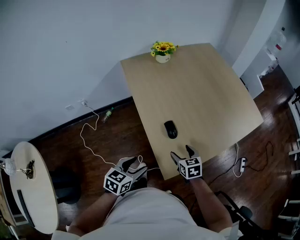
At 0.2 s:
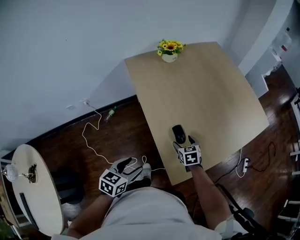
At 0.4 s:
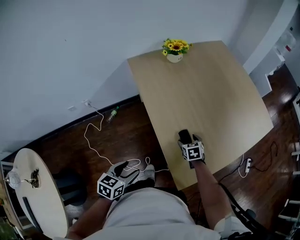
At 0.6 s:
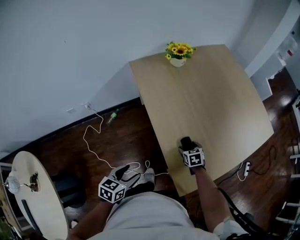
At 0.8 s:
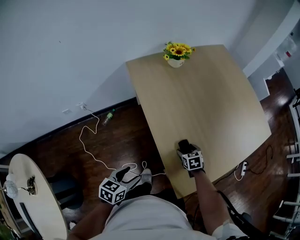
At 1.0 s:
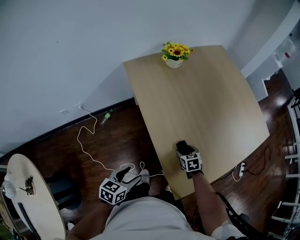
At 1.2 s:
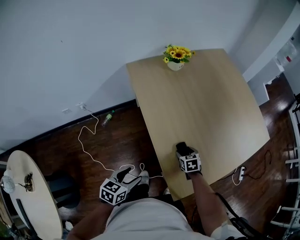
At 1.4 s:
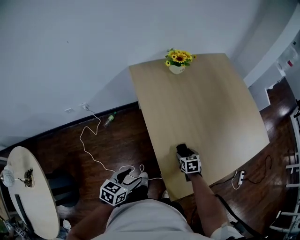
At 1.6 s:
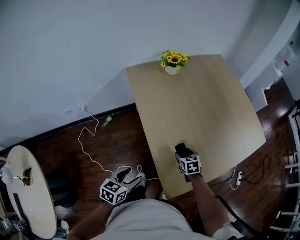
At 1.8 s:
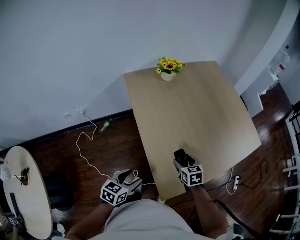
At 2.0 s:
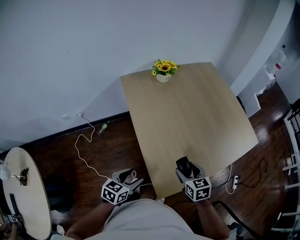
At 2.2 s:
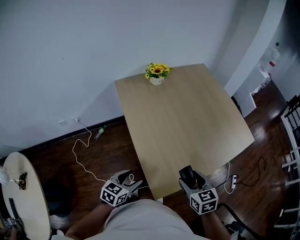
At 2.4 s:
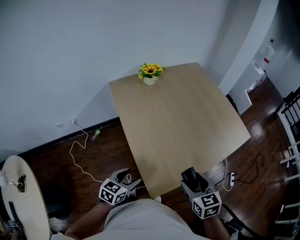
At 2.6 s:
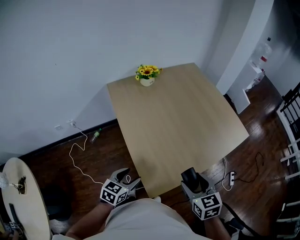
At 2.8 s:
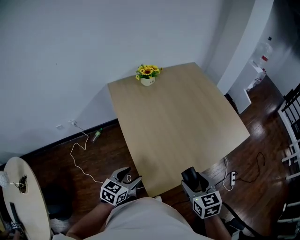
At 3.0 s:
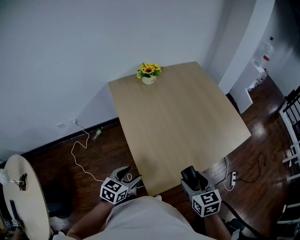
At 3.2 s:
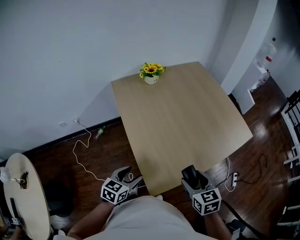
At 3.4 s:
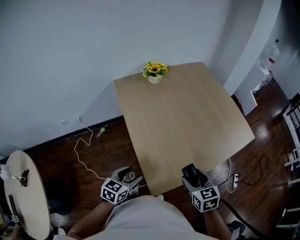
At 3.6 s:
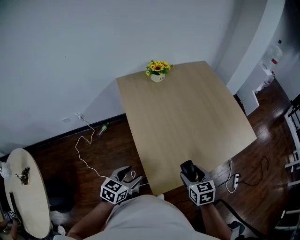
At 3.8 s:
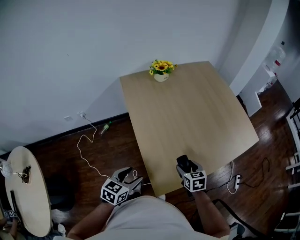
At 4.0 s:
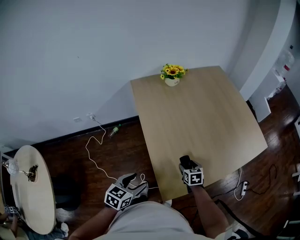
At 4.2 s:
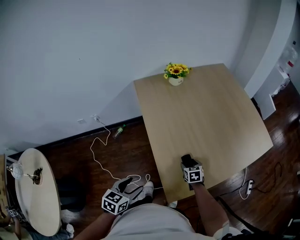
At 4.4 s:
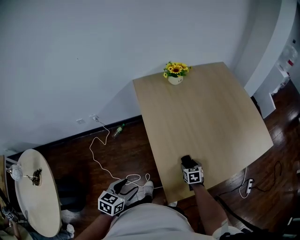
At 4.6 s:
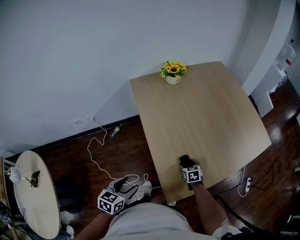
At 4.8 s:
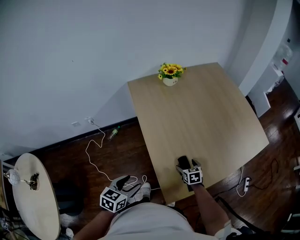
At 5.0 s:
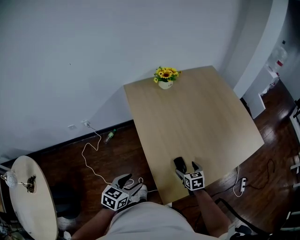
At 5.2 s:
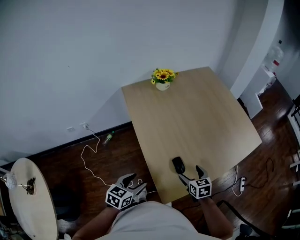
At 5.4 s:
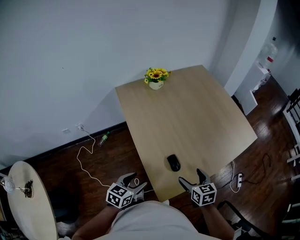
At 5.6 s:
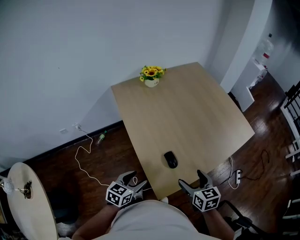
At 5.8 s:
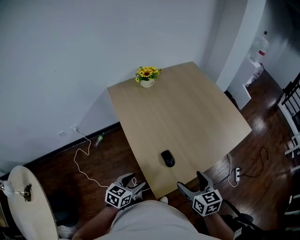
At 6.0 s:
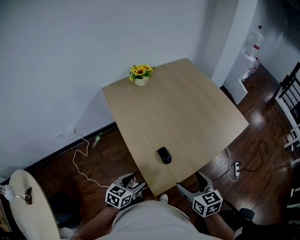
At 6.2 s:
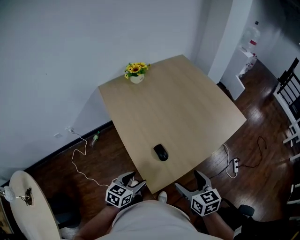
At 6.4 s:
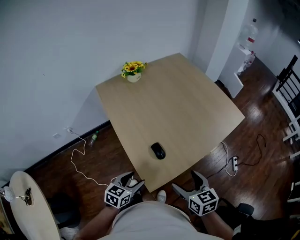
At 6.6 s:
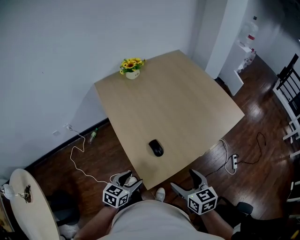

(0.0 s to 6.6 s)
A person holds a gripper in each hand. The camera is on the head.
0.0 s - 1.6 s: The left gripper shifts approximately 10 cm to the left and forward. The right gripper goes roughly 15 cm forward and downward.
1.6 s - 3.2 s: The right gripper moves upward, backward and to the right, roughly 30 cm; the left gripper moves to the right and upward, some 10 cm.
3.2 s - 5.0 s: The left gripper is displaced to the left by roughly 10 cm, while the right gripper is displaced downward and forward by about 25 cm, and opens its fingers.
5.0 s - 6.6 s: The right gripper moves upward, backward and to the right, roughly 25 cm; the left gripper travels to the right by roughly 15 cm.

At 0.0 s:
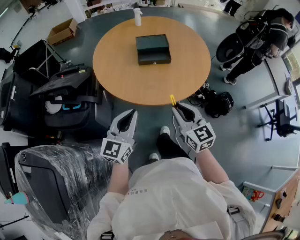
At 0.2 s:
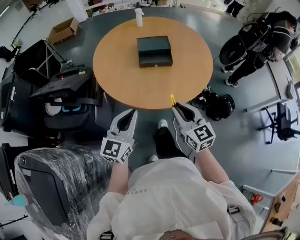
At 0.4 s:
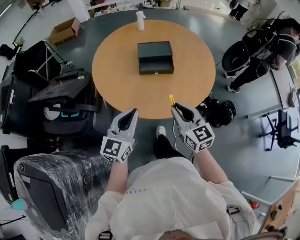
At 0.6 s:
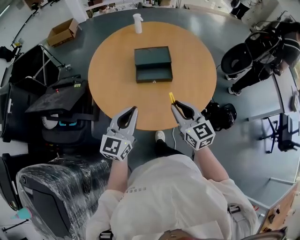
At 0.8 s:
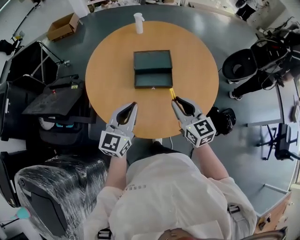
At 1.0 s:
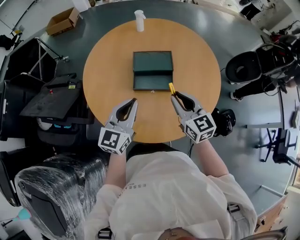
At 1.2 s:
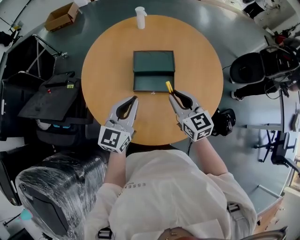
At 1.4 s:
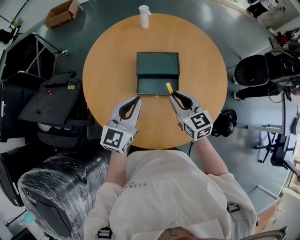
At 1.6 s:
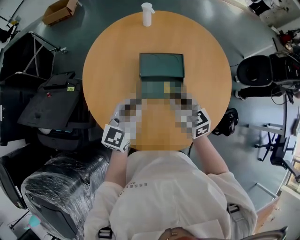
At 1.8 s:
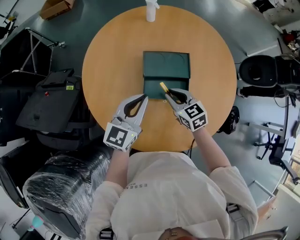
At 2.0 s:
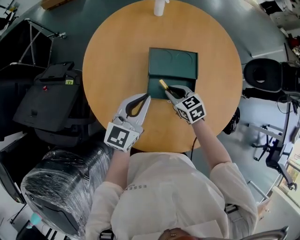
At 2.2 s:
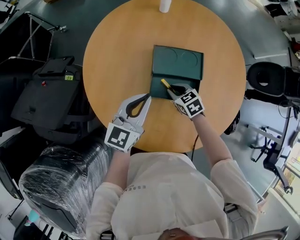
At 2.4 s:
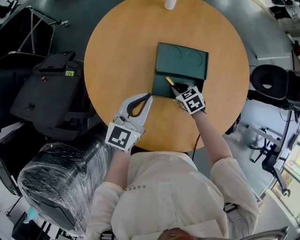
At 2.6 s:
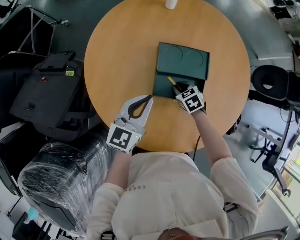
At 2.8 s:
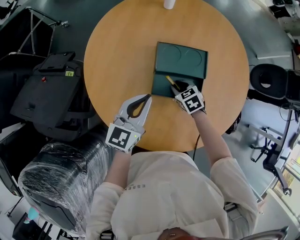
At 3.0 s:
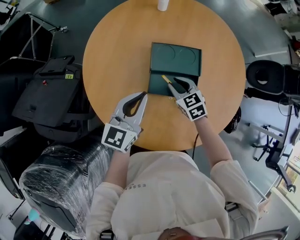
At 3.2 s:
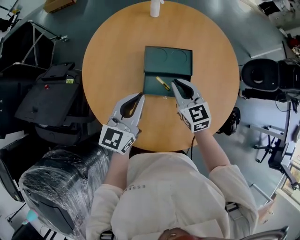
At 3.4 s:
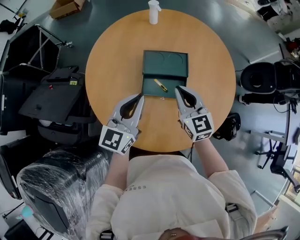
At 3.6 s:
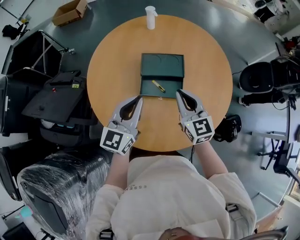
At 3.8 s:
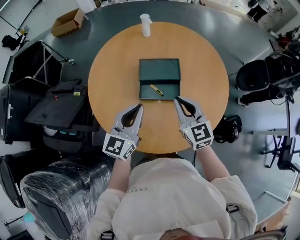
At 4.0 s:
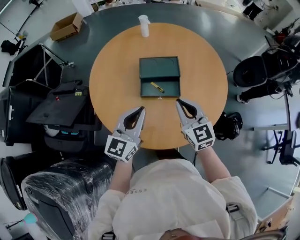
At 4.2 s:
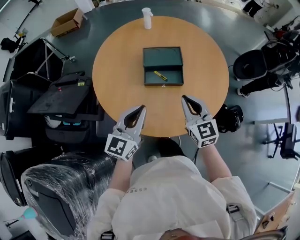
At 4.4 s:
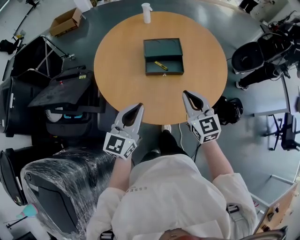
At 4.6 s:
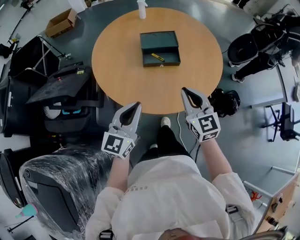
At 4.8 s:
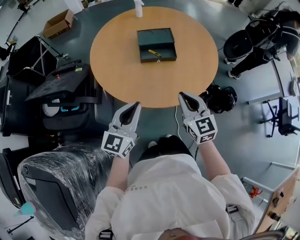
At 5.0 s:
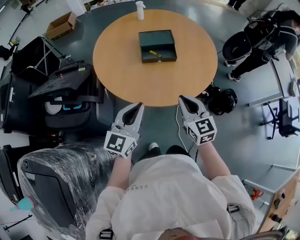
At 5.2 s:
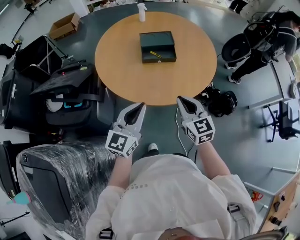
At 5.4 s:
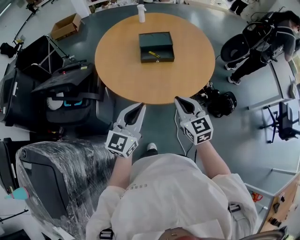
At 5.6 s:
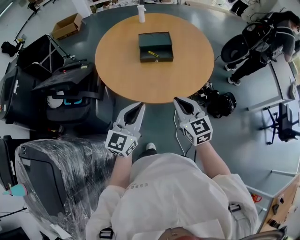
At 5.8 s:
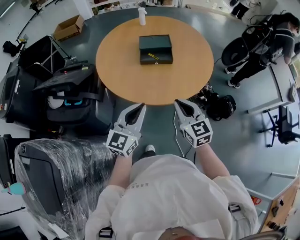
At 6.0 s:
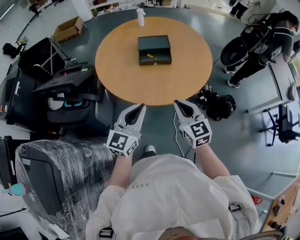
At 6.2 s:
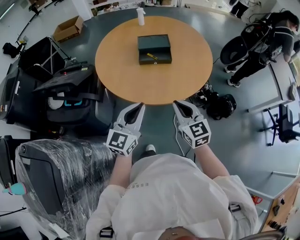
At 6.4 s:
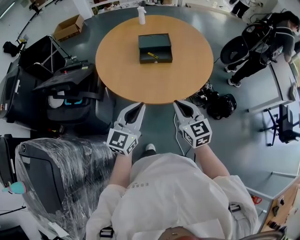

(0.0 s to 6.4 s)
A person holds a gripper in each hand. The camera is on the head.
0.0 s - 1.6 s: The grippers both shift forward by some 40 cm.
1.6 s - 3.2 s: The right gripper goes some 5 cm forward, and travels downward and back again, roughly 20 cm each way.
3.2 s - 4.8 s: Both grippers move backward, some 30 cm.
4.8 s - 6.4 s: The left gripper goes roughly 10 cm backward and to the right, while the right gripper moves backward, some 10 cm.

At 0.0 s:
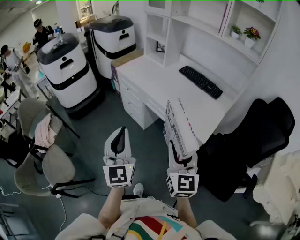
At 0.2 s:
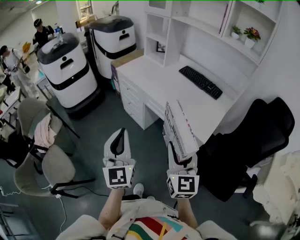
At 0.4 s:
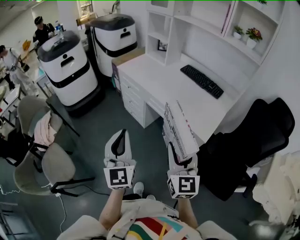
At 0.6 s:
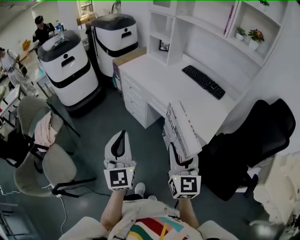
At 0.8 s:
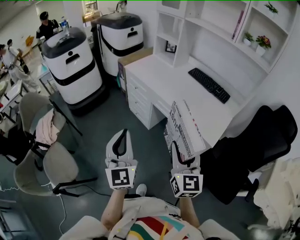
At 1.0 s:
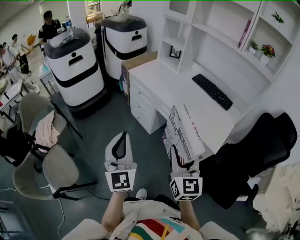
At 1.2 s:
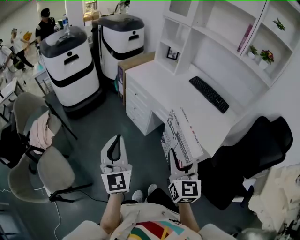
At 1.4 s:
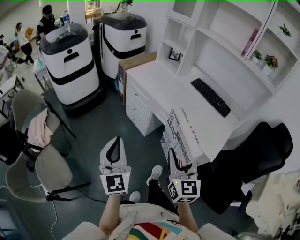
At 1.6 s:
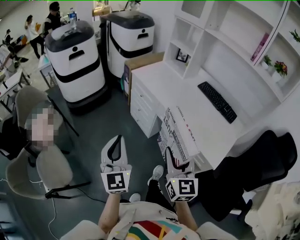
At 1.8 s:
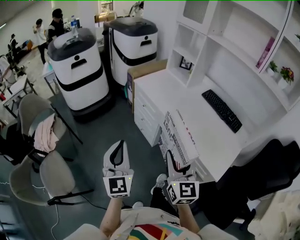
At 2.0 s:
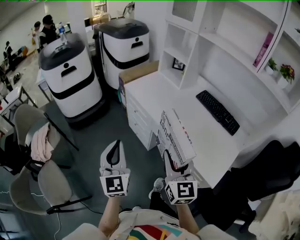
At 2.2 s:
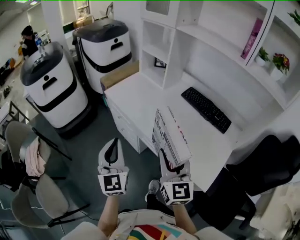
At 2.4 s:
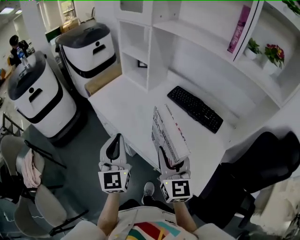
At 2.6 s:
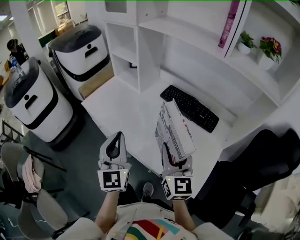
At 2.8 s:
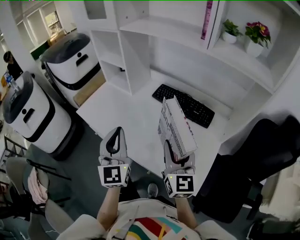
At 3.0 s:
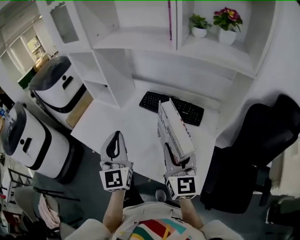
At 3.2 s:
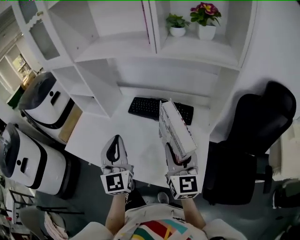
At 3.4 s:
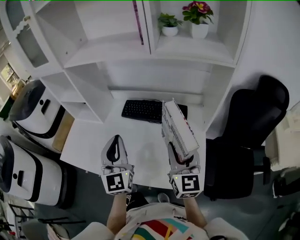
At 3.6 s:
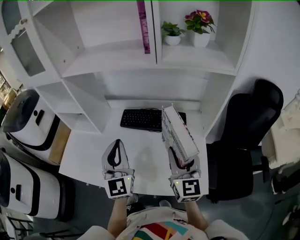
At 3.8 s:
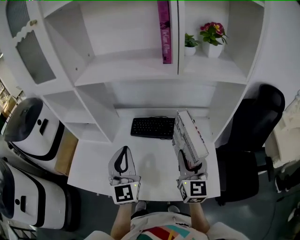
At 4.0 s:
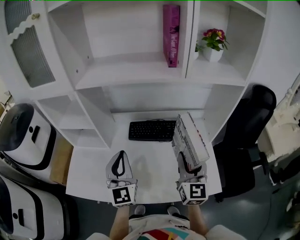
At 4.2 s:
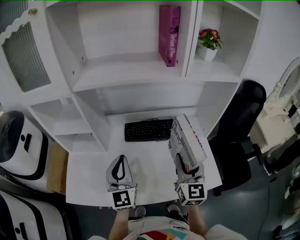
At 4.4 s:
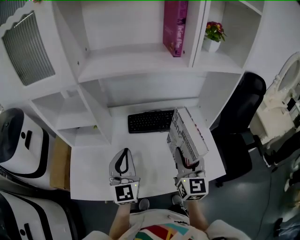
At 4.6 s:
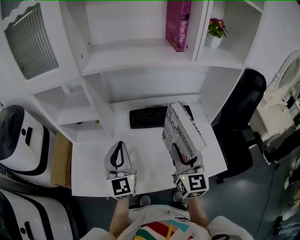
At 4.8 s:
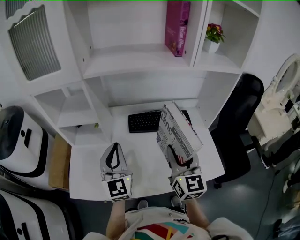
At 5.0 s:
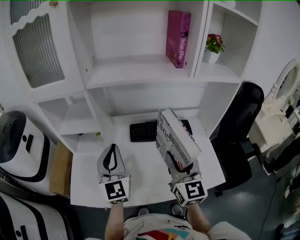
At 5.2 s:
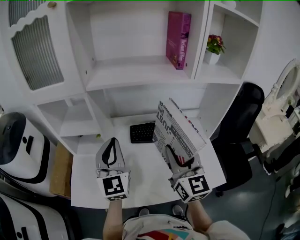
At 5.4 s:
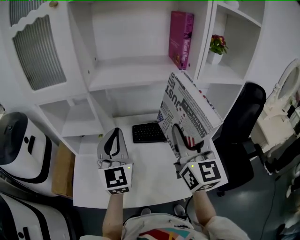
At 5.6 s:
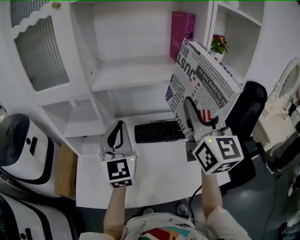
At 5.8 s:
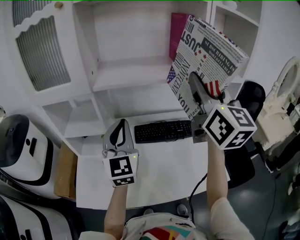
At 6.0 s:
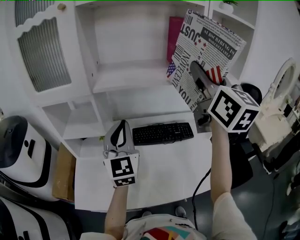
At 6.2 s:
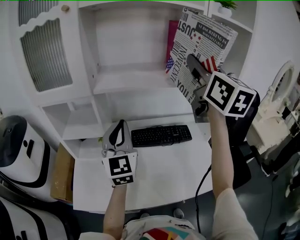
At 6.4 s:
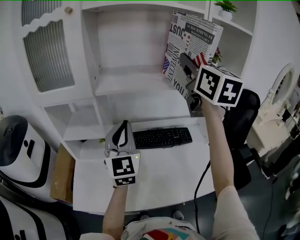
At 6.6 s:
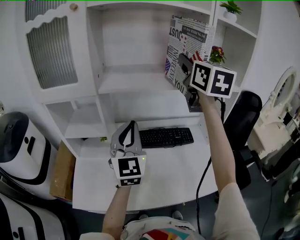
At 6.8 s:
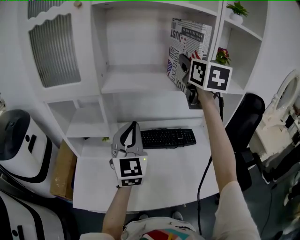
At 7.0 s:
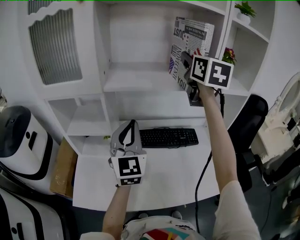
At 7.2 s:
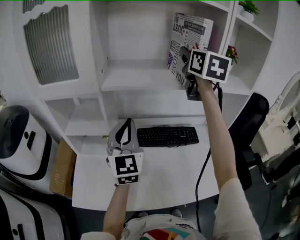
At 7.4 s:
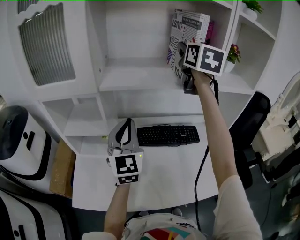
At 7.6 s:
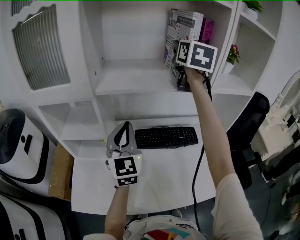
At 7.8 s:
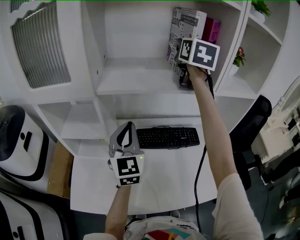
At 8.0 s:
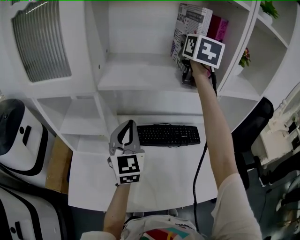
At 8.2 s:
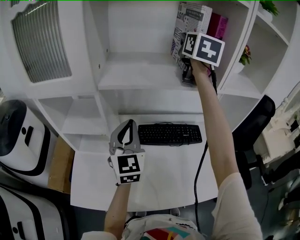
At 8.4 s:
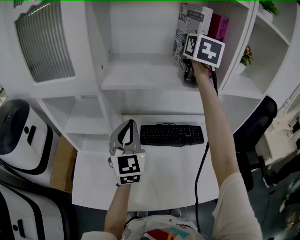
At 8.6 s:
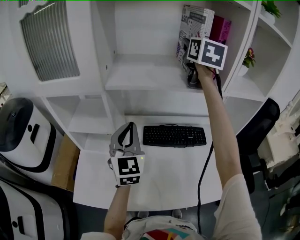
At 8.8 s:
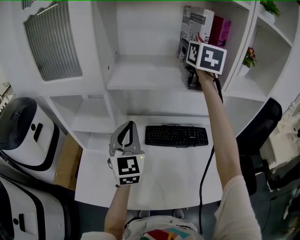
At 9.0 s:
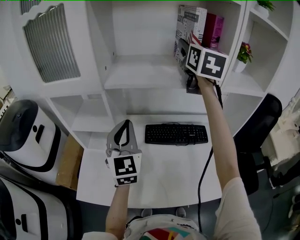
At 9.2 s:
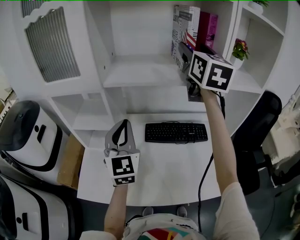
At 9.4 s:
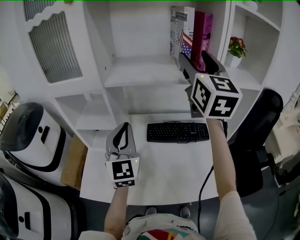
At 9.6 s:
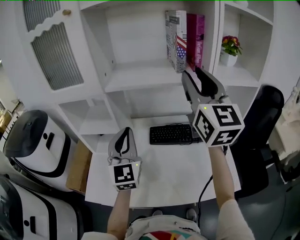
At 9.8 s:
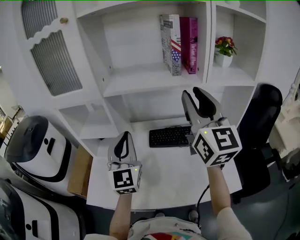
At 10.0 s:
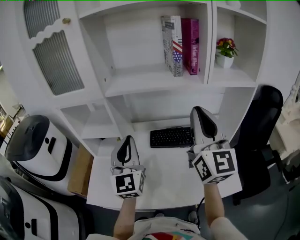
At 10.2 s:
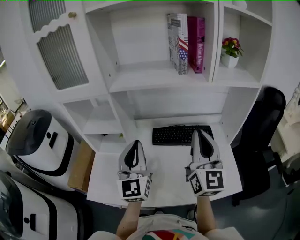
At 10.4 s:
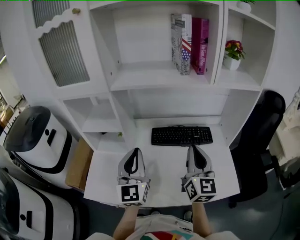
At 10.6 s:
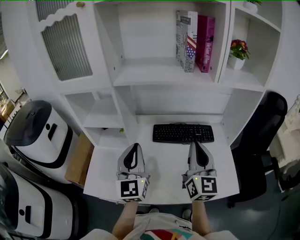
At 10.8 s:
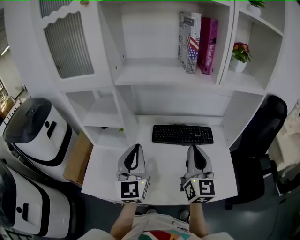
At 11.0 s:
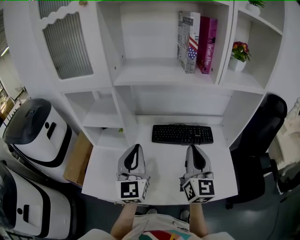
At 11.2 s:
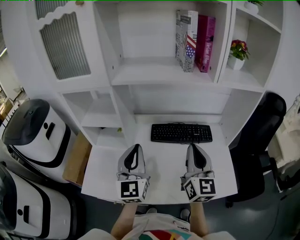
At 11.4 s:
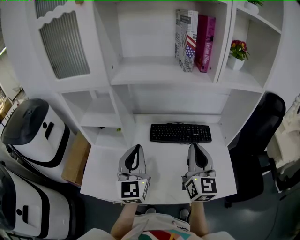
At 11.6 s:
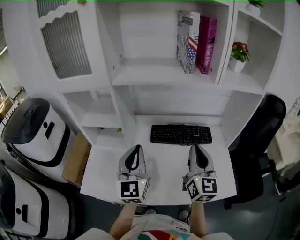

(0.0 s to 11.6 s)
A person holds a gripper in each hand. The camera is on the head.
0.0 s - 1.4 s: The two grippers go some 15 cm to the left and forward.
1.4 s - 2.8 s: Both grippers travel together forward and to the right, roughly 40 cm.
2.8 s - 4.4 s: The right gripper moves about 10 cm, and rotates approximately 40 degrees; the left gripper moves some 20 cm, and swivels some 40 degrees.
4.4 s - 5.8 s: The left gripper is displaced upward and forward by roughly 15 cm. The right gripper is displaced upward by about 30 cm.
5.8 s - 7.2 s: The right gripper is displaced forward by roughly 20 cm.
7.2 s - 8.8 s: The right gripper shifts approximately 5 cm forward, and opens its fingers.
8.8 s - 10.2 s: The left gripper goes approximately 10 cm backward. The right gripper goes approximately 35 cm backward and downward, and closes up.
10.2 s - 11.6 s: The right gripper travels downward by about 10 cm.
